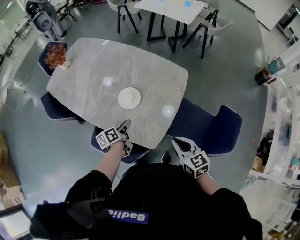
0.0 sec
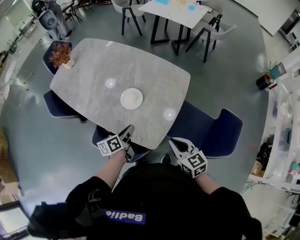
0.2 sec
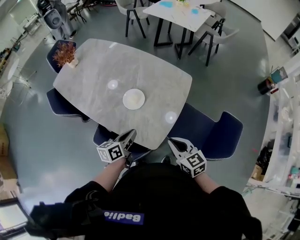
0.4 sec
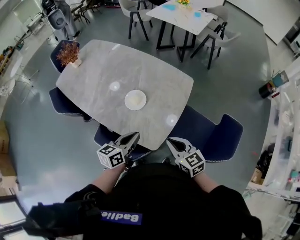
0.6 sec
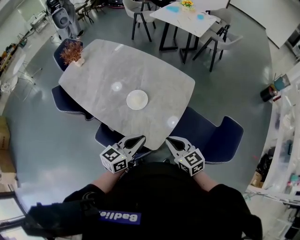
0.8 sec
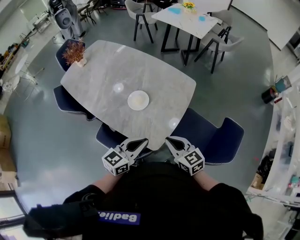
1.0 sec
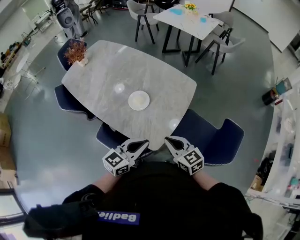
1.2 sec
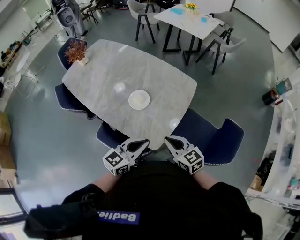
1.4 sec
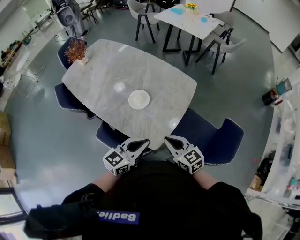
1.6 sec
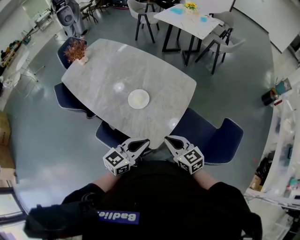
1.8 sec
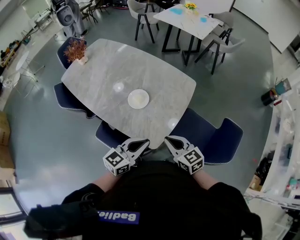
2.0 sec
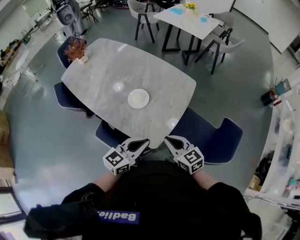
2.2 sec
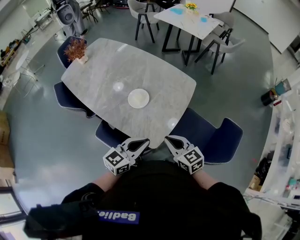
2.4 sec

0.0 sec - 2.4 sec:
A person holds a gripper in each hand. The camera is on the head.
0.0 sec - 1.2 sec: The right gripper ends up some 5 cm from where it was.

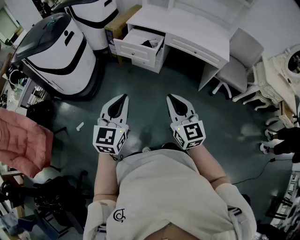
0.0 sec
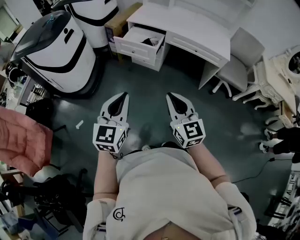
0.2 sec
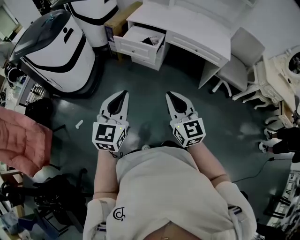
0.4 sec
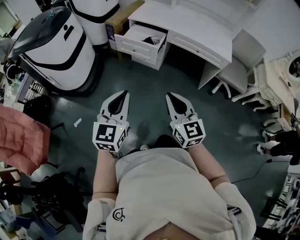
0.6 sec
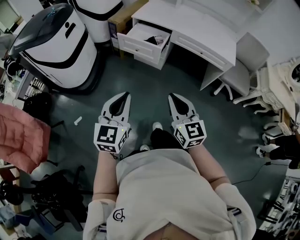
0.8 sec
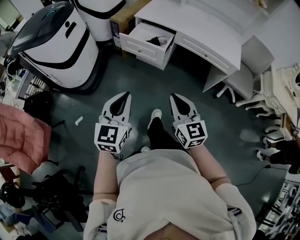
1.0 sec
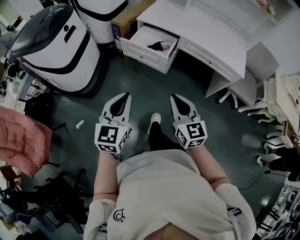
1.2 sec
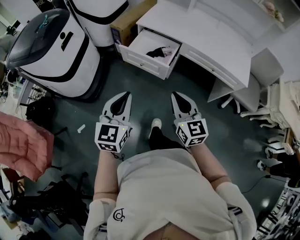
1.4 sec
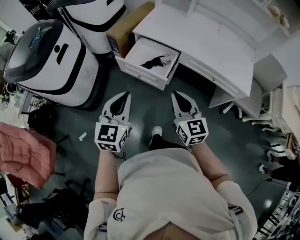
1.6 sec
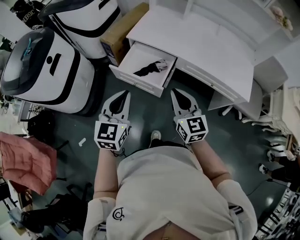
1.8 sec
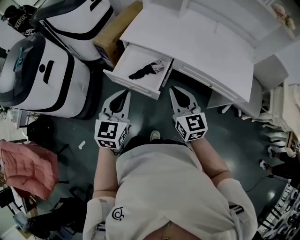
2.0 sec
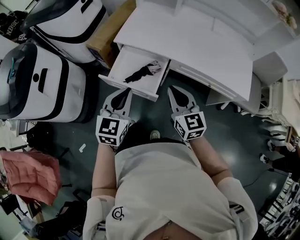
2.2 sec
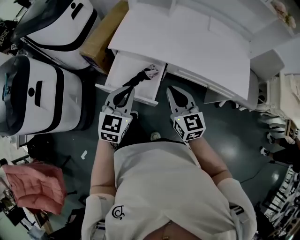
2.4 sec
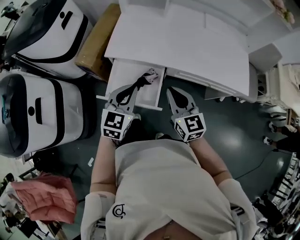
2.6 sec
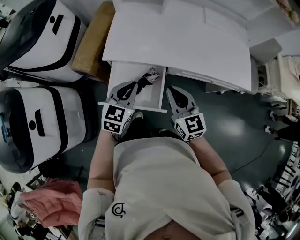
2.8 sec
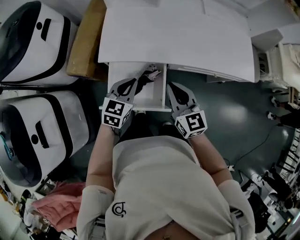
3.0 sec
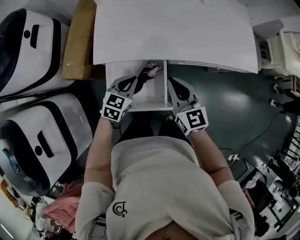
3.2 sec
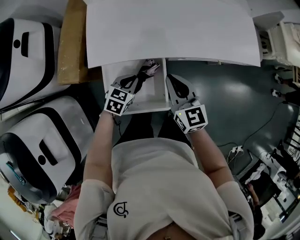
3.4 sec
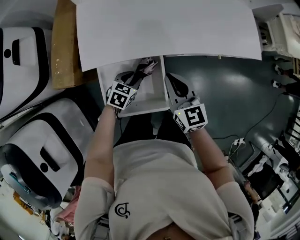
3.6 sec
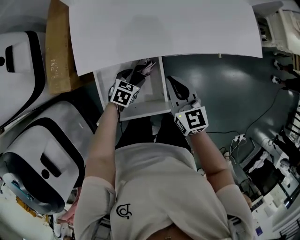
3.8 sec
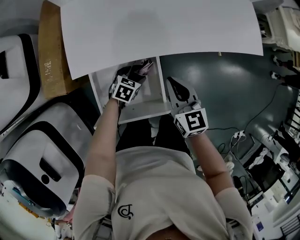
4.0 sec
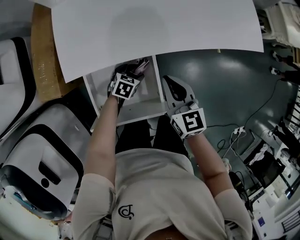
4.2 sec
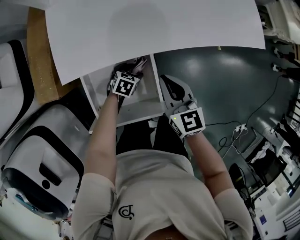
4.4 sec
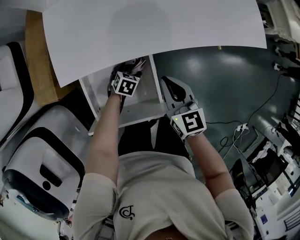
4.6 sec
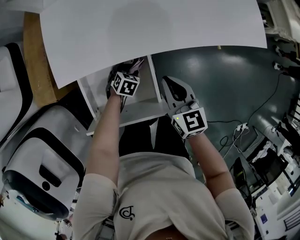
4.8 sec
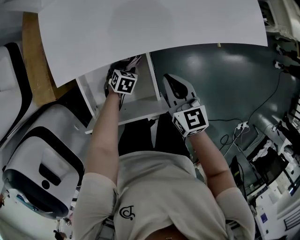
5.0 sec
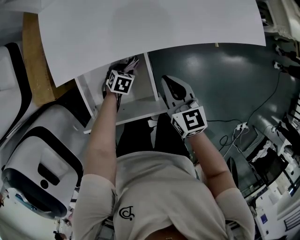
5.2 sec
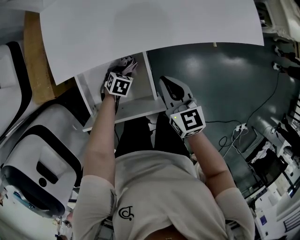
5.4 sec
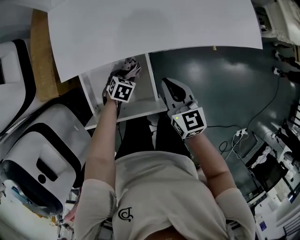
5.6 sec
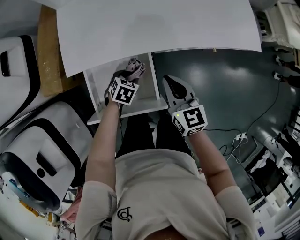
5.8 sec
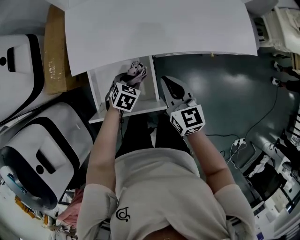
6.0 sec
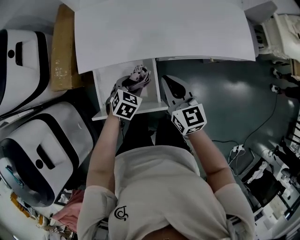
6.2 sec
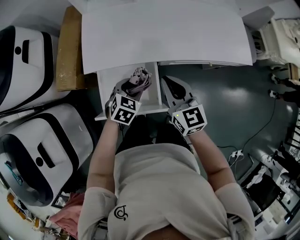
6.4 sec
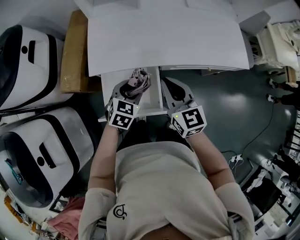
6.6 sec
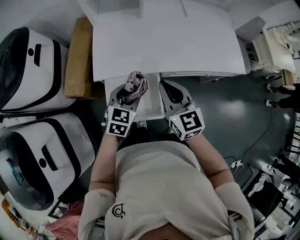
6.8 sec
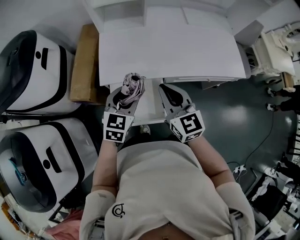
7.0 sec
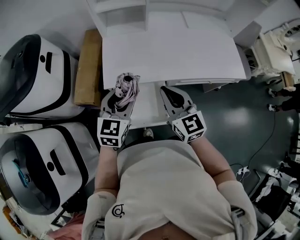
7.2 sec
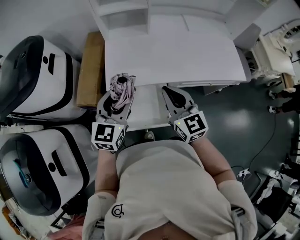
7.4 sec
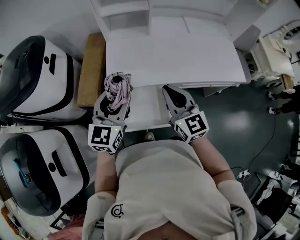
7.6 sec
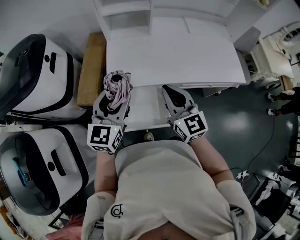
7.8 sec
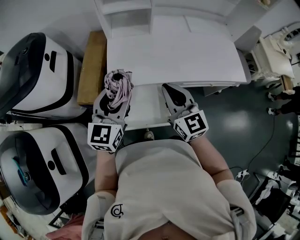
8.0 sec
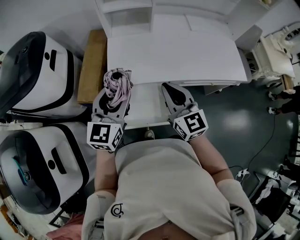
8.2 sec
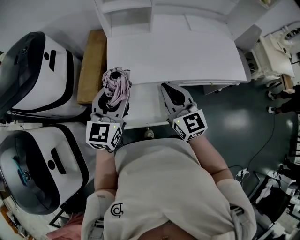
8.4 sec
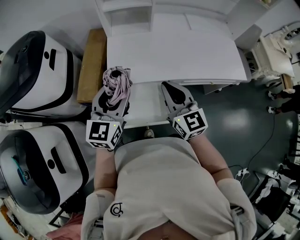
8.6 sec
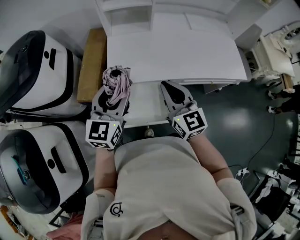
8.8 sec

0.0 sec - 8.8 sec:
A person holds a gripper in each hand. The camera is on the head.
0.0 sec - 1.4 sec: The grippers both shift forward by about 25 cm.
1.4 sec - 3.0 sec: The right gripper moves roughly 40 cm, and swivels some 20 degrees, while the left gripper changes place by approximately 50 cm, and turns by about 40 degrees.
3.0 sec - 4.4 sec: The left gripper heads downward, covering some 30 cm, angles its fingers downward, by roughly 30 degrees, and opens. The right gripper travels downward by approximately 15 cm.
4.4 sec - 5.8 sec: The left gripper is displaced upward by approximately 5 cm, and closes its fingers.
5.8 sec - 7.4 sec: The left gripper goes some 40 cm upward, and angles its fingers upward, by roughly 50 degrees. The right gripper travels upward and to the left by some 20 cm, and changes its angle by about 20 degrees.
7.4 sec - 8.8 sec: The grippers move only a little.

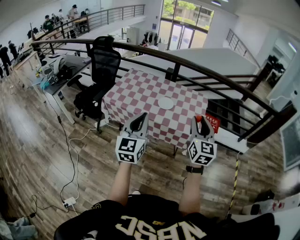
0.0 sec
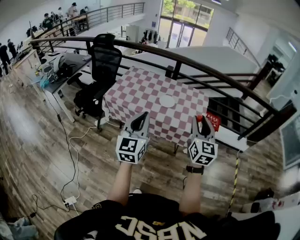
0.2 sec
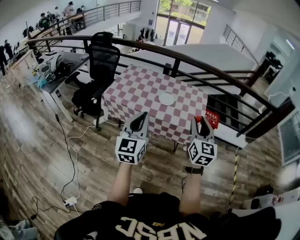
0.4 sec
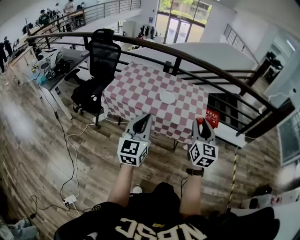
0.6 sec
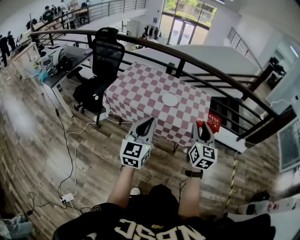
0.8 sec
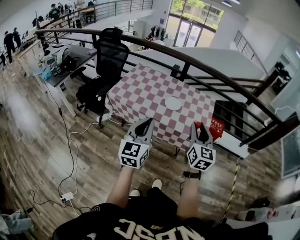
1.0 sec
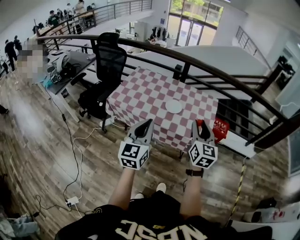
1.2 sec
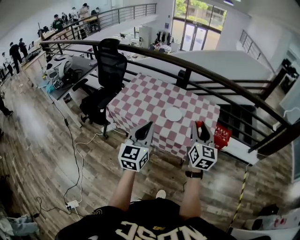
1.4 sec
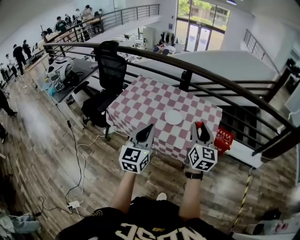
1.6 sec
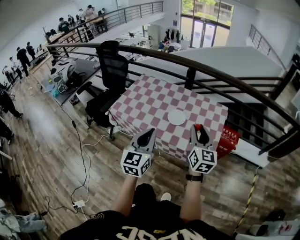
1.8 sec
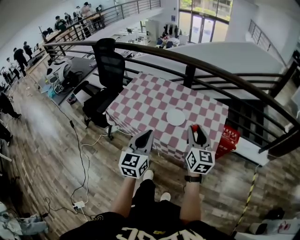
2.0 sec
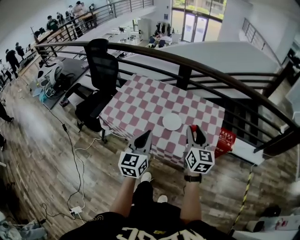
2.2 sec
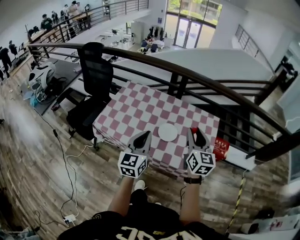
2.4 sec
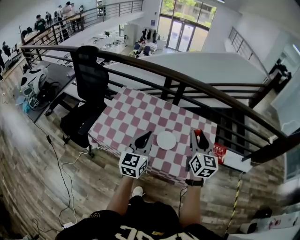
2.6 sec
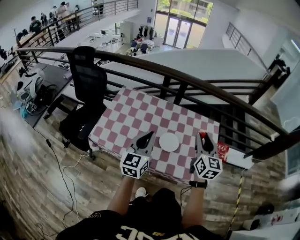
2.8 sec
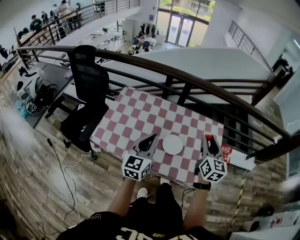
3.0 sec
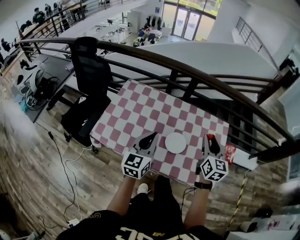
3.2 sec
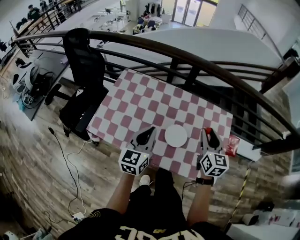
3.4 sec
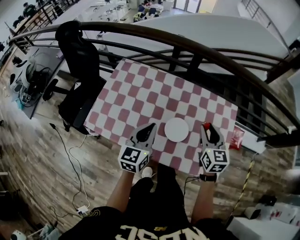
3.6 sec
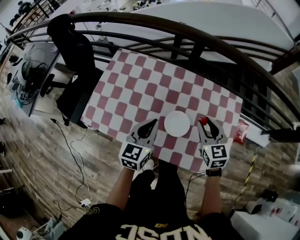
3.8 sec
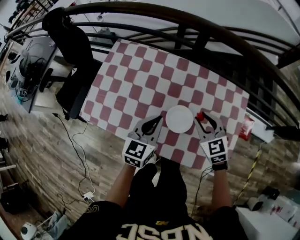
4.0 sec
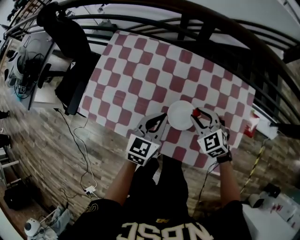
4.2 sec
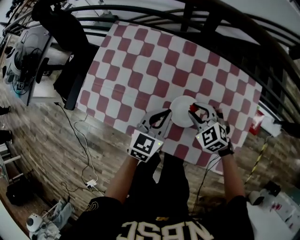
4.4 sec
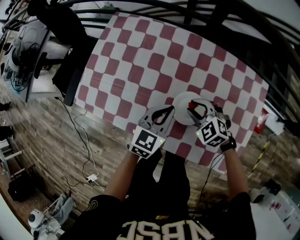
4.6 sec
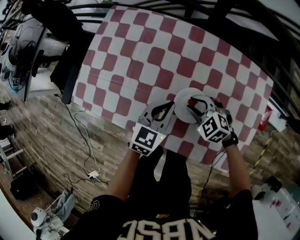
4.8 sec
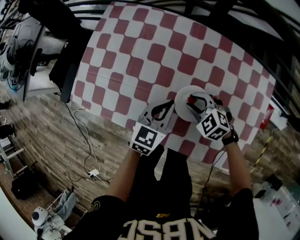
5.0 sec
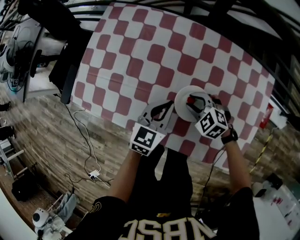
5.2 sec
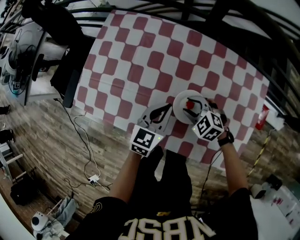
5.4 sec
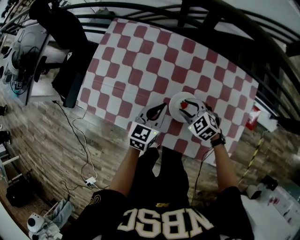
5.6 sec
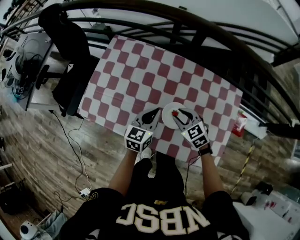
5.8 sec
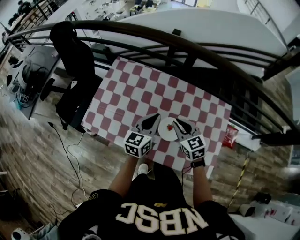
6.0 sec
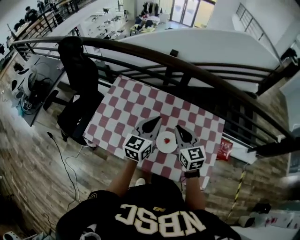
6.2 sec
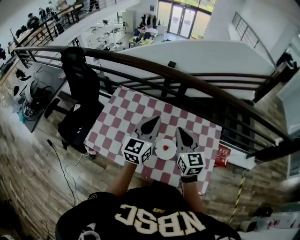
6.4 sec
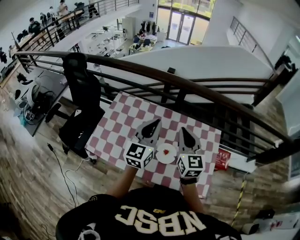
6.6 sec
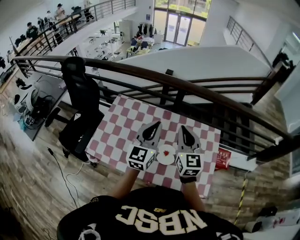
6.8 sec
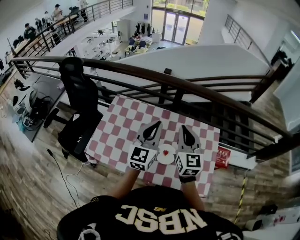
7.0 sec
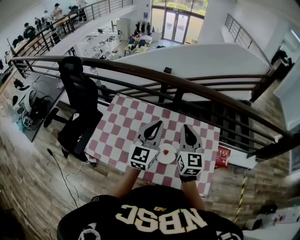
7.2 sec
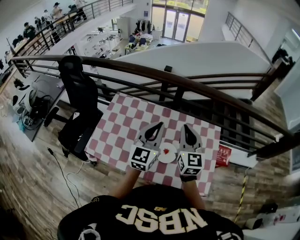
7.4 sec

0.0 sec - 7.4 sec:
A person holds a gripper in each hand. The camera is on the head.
0.0 sec - 1.4 sec: Both grippers travel together forward, roughly 10 cm.
1.4 sec - 3.0 sec: Both grippers travel together forward, roughly 30 cm.
3.0 sec - 4.4 sec: The left gripper heads downward and forward, covering approximately 25 cm, and rotates approximately 20 degrees; the right gripper travels downward by roughly 30 cm, and angles its fingers downward, by roughly 40 degrees.
4.4 sec - 6.0 sec: Both grippers travel together upward, some 15 cm. The right gripper rotates some 30 degrees.
6.0 sec - 7.4 sec: The two grippers go about 20 cm upward. The left gripper turns by approximately 20 degrees. The right gripper swivels roughly 40 degrees.

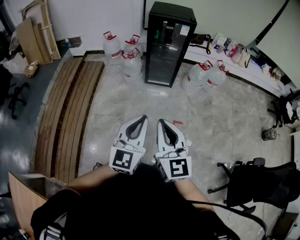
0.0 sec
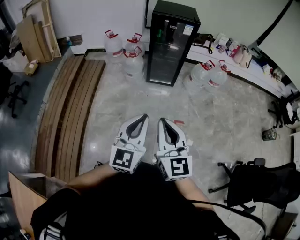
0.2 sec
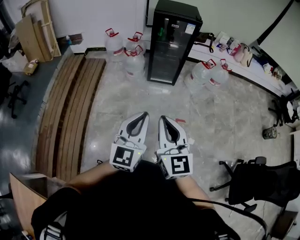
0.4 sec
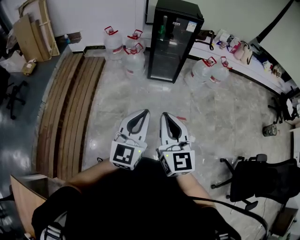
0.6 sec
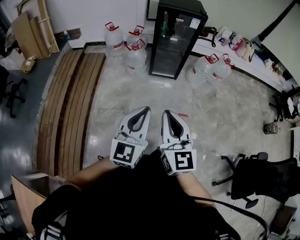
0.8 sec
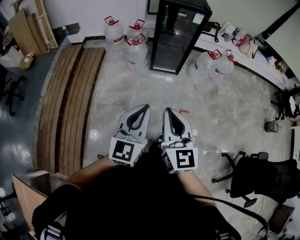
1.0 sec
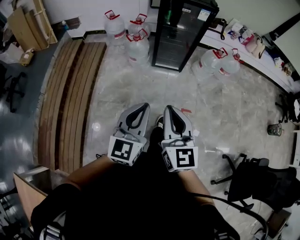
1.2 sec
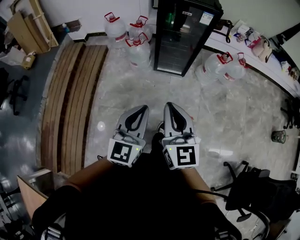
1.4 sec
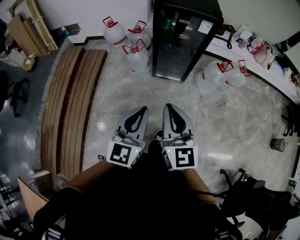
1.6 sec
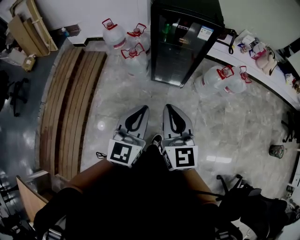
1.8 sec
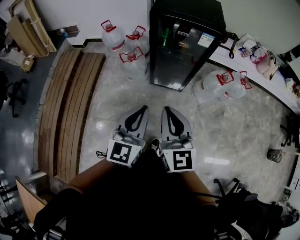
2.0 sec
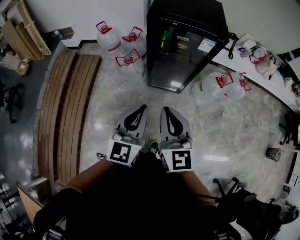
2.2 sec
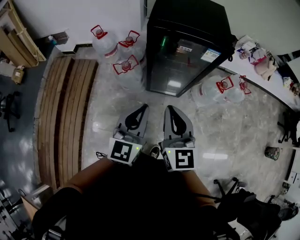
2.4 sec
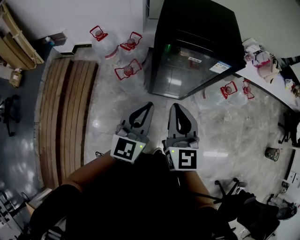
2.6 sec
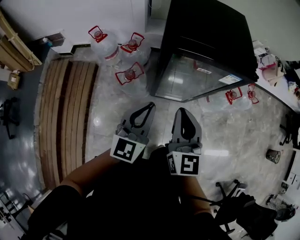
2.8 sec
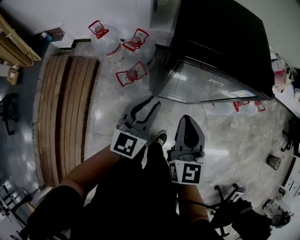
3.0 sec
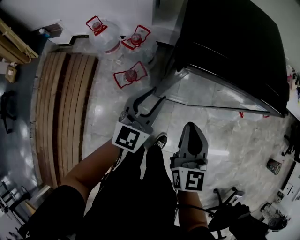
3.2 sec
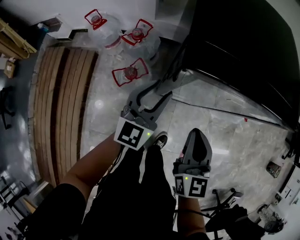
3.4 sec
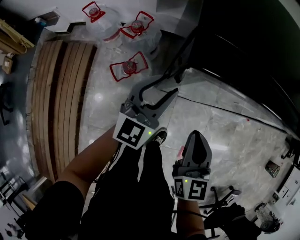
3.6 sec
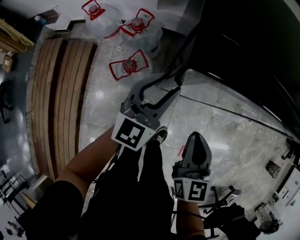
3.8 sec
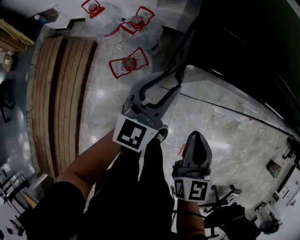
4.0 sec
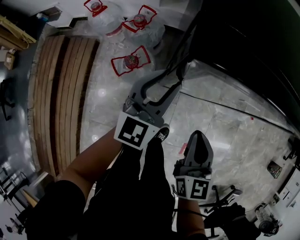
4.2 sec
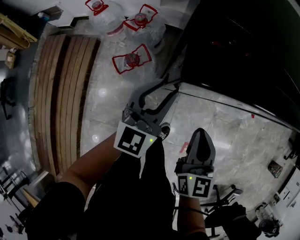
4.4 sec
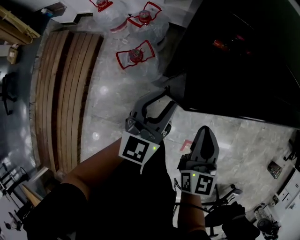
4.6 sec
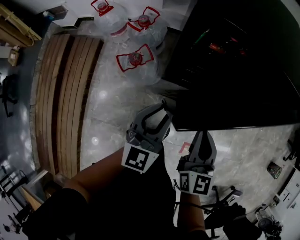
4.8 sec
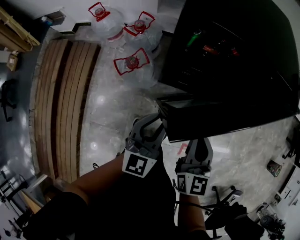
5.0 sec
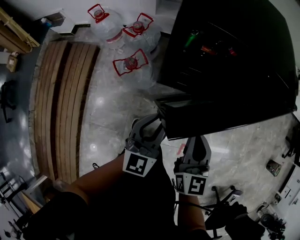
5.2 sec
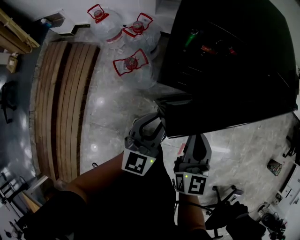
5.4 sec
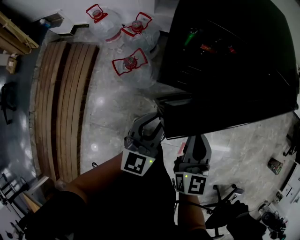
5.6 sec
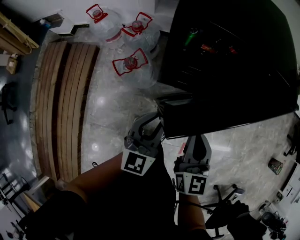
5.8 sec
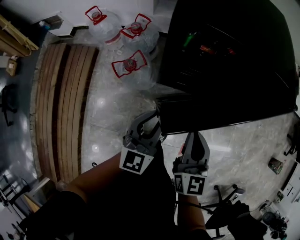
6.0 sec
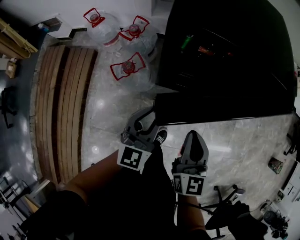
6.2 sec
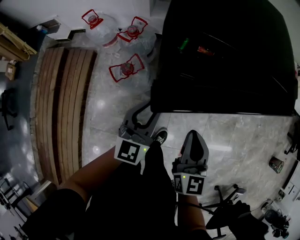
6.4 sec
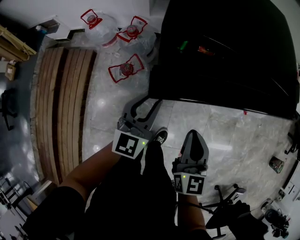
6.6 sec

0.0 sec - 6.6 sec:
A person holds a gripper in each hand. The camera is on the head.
0.0 sec - 1.6 sec: The two grippers go about 35 cm forward.
1.6 sec - 3.2 sec: Both grippers are carried forward, roughly 50 cm. The left gripper opens.
3.2 sec - 5.0 sec: The left gripper goes some 10 cm backward and to the right; the right gripper moves to the right and downward, some 10 cm.
5.0 sec - 6.6 sec: The left gripper travels forward by roughly 10 cm.
